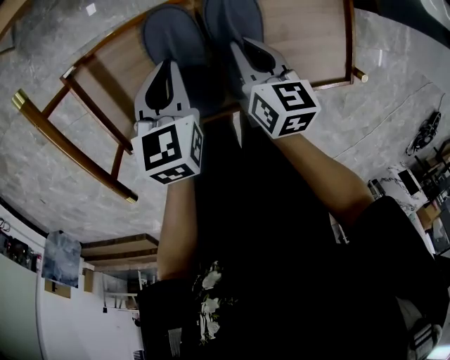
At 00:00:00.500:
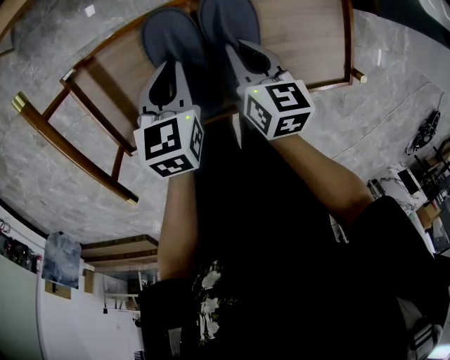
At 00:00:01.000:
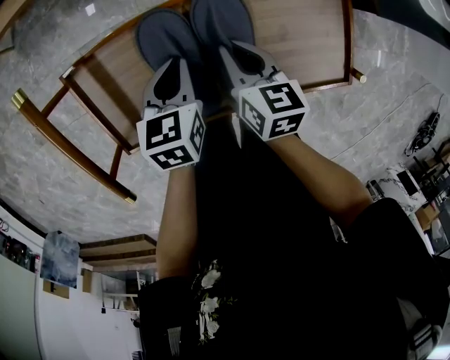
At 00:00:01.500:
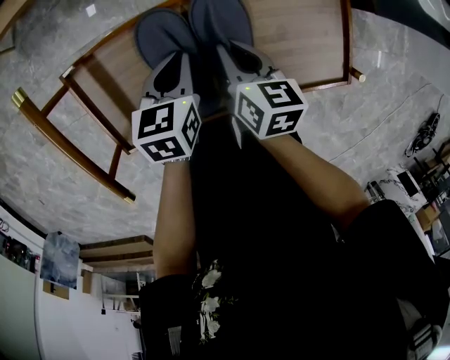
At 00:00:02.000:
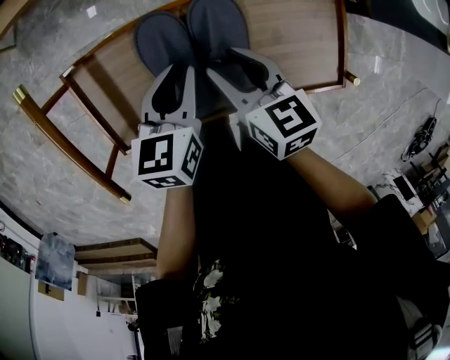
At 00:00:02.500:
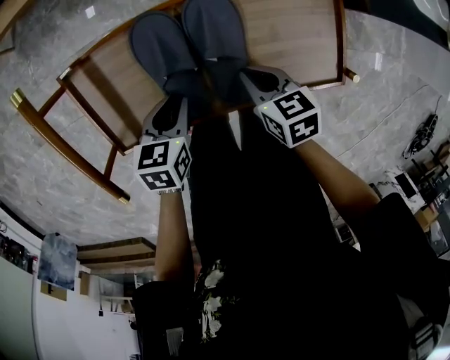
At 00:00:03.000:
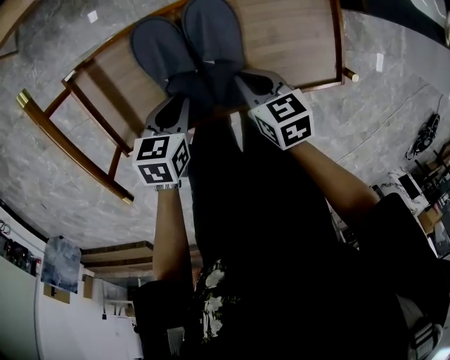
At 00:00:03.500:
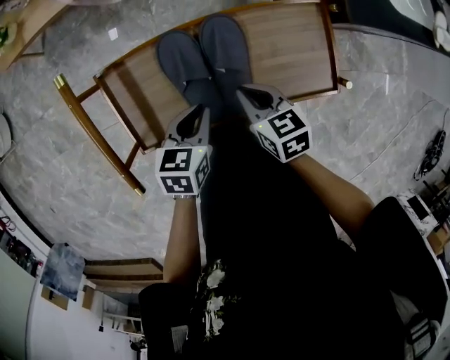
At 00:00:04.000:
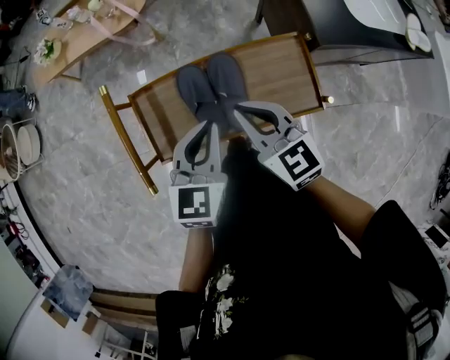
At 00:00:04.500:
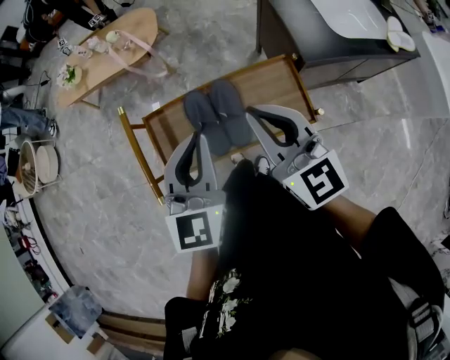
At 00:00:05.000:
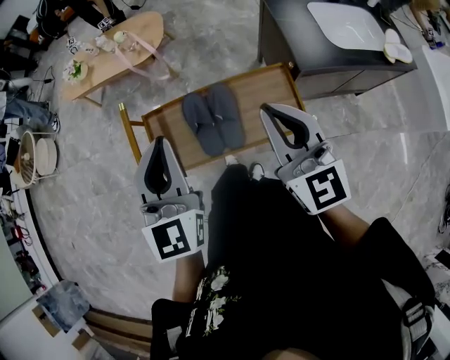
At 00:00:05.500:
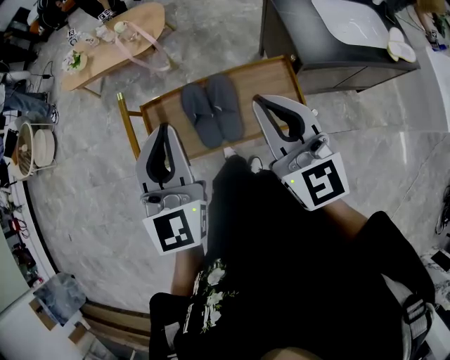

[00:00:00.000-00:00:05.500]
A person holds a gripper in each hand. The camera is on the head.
00:00:00.000 to 00:00:02.000: The right gripper moves roughly 5 cm, and opens up.
00:00:02.000 to 00:00:03.500: The grippers both shift backward by some 5 cm. The right gripper closes.
00:00:03.500 to 00:00:05.500: Both grippers travel together upward, roughly 35 cm. The right gripper angles its fingers upward, by roughly 40 degrees; the left gripper tips its fingers upward by approximately 40 degrees.

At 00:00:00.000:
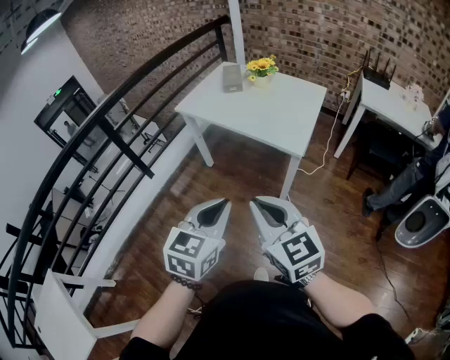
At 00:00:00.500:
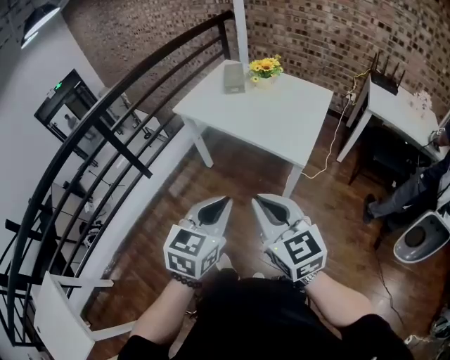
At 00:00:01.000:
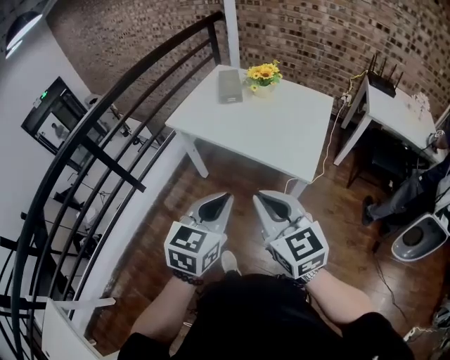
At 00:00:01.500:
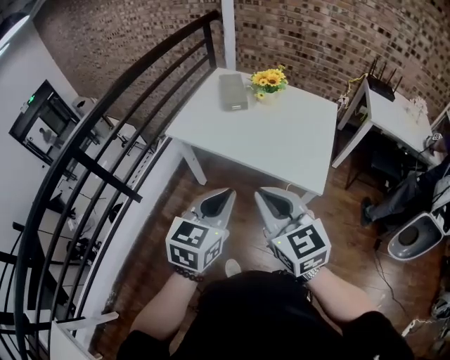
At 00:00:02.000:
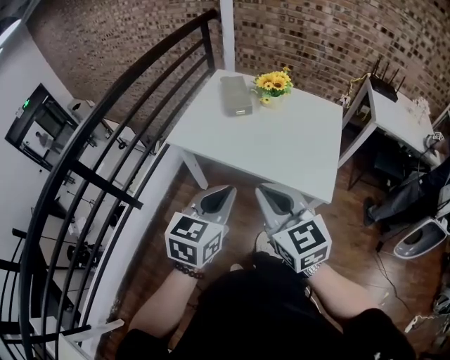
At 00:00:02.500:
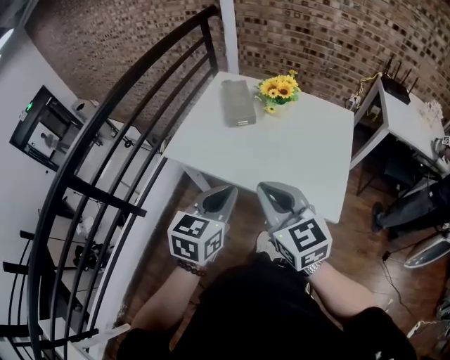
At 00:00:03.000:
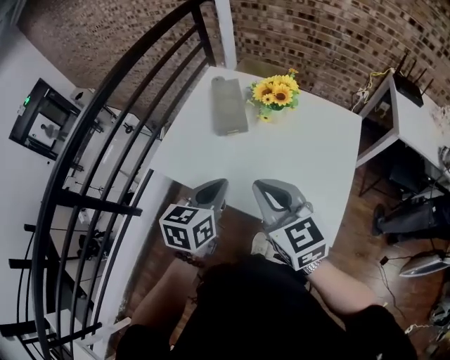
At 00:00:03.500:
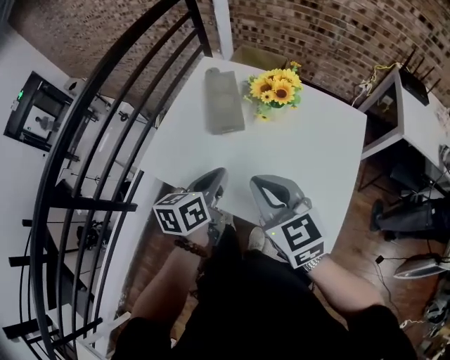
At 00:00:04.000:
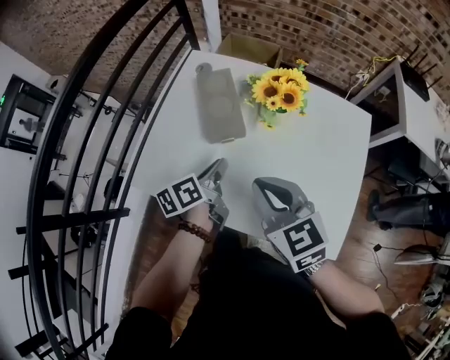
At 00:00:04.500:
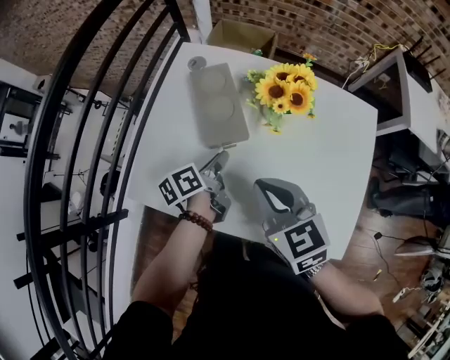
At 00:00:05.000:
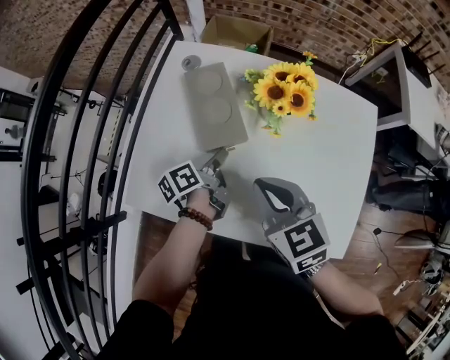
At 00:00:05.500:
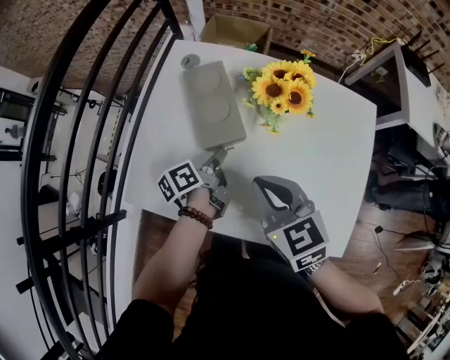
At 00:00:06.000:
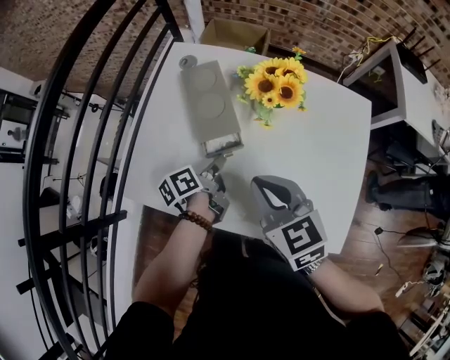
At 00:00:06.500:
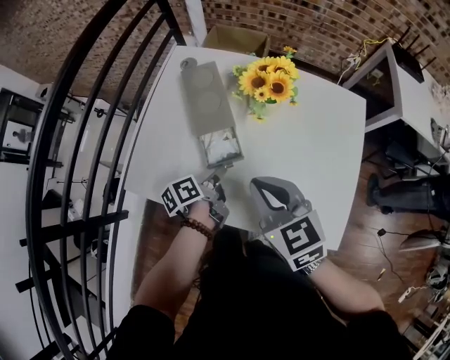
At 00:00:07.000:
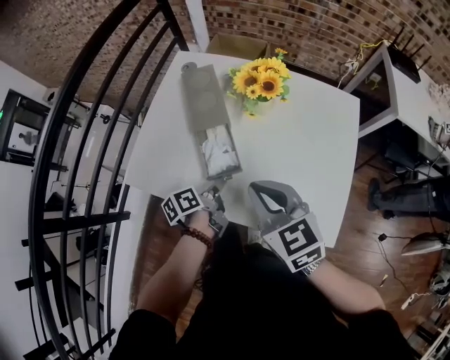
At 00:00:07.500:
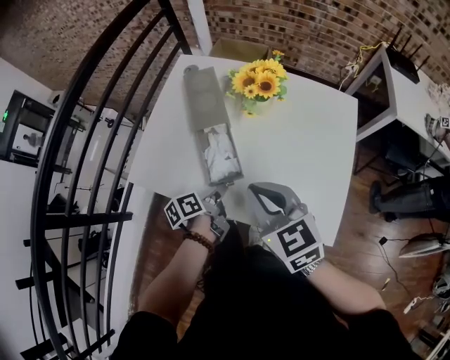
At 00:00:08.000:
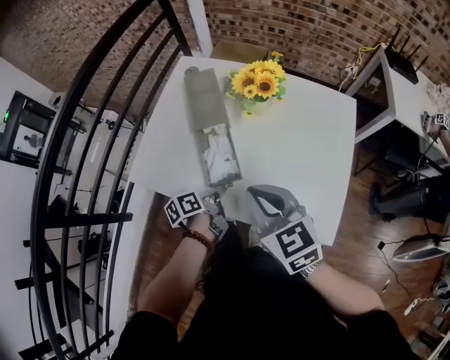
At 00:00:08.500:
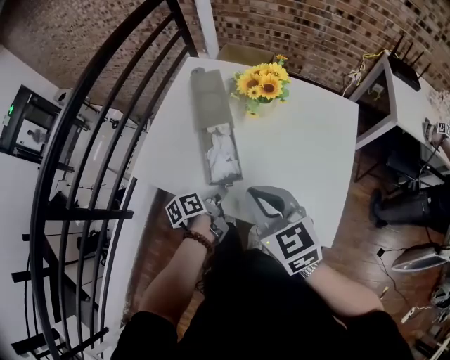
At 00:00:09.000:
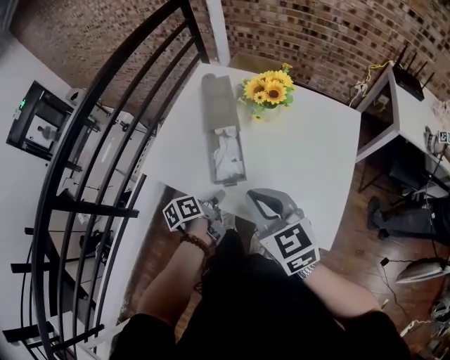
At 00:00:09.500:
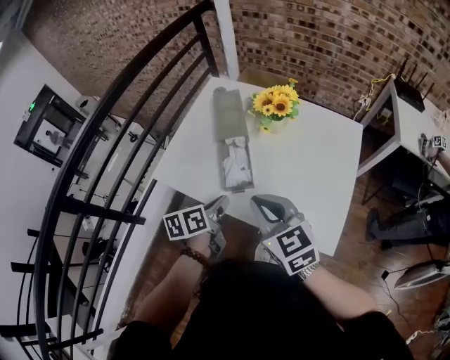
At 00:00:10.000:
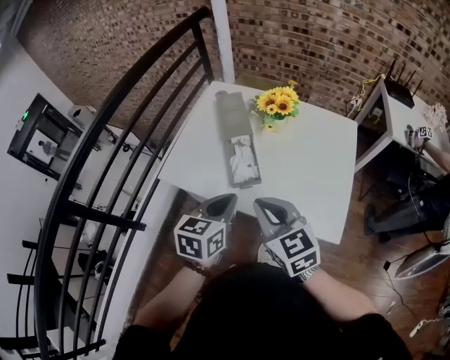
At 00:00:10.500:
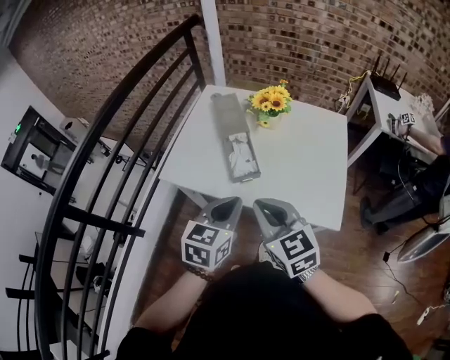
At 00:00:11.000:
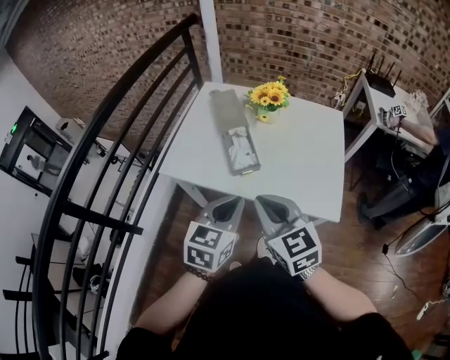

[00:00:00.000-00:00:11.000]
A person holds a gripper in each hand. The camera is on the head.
00:00:00.000 to 00:00:02.000: The two grippers go approximately 30 cm forward.
00:00:02.000 to 00:00:03.500: Both grippers travel together forward, about 25 cm. The left gripper turns by some 30 degrees.
00:00:03.500 to 00:00:05.500: The left gripper moves forward and downward, roughly 20 cm, and rotates some 40 degrees, while the right gripper travels forward and downward by about 15 cm.
00:00:05.500 to 00:00:07.500: The right gripper is displaced backward by about 10 cm; the left gripper is displaced backward by about 15 cm.
00:00:07.500 to 00:00:09.000: The grippers stay close to where they were, moving slightly.
00:00:09.000 to 00:00:11.000: The left gripper goes some 25 cm upward and backward, and rolls clockwise, seen from behind, by some 70 degrees. The right gripper shifts about 10 cm backward and to the left.

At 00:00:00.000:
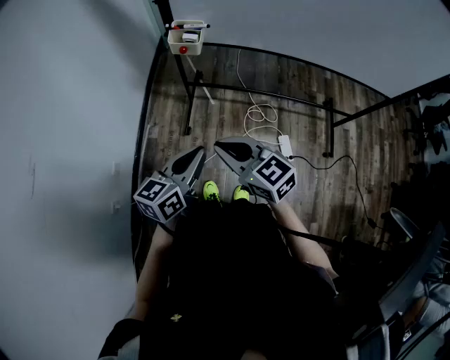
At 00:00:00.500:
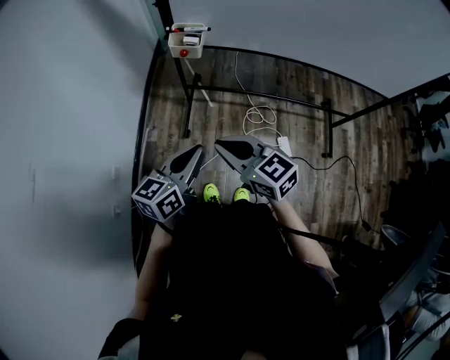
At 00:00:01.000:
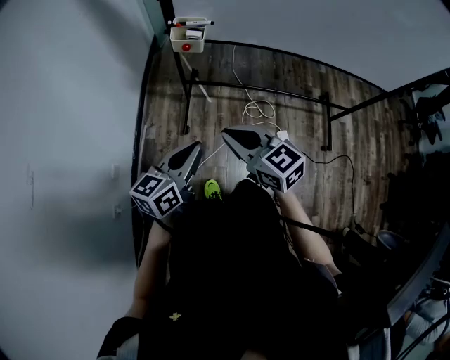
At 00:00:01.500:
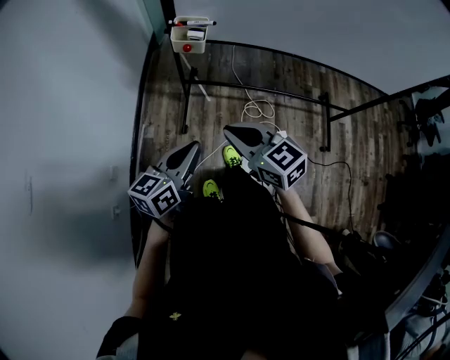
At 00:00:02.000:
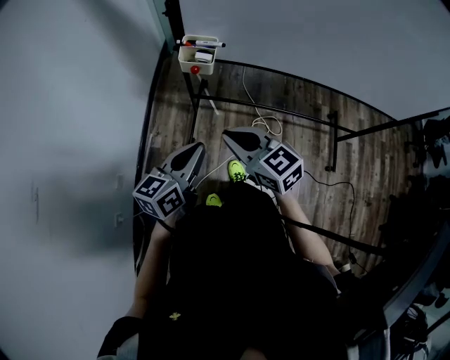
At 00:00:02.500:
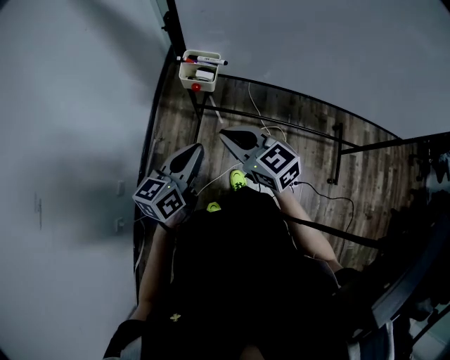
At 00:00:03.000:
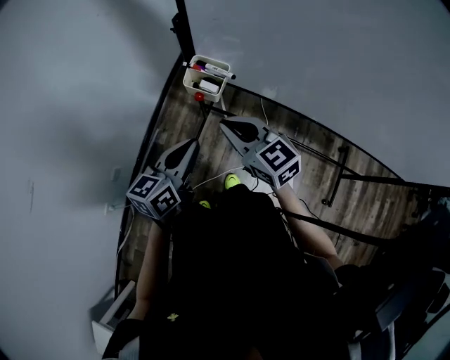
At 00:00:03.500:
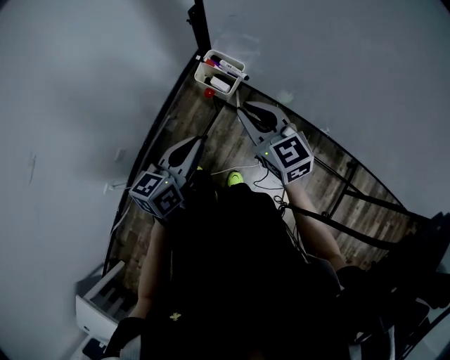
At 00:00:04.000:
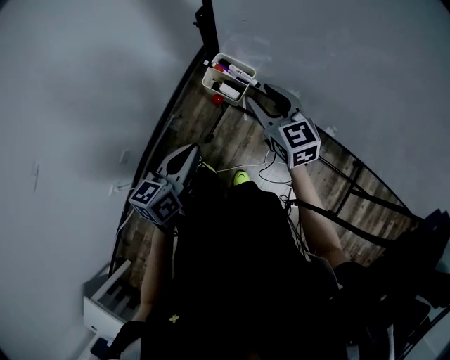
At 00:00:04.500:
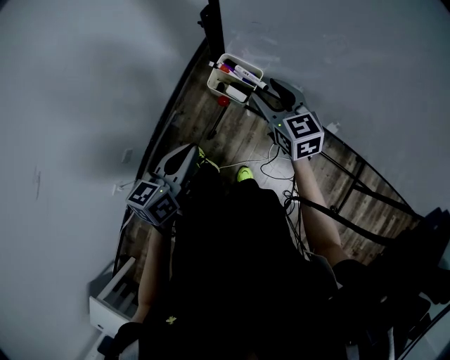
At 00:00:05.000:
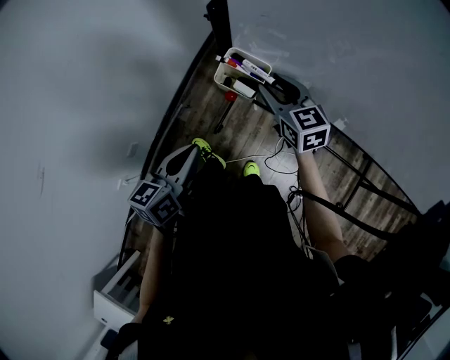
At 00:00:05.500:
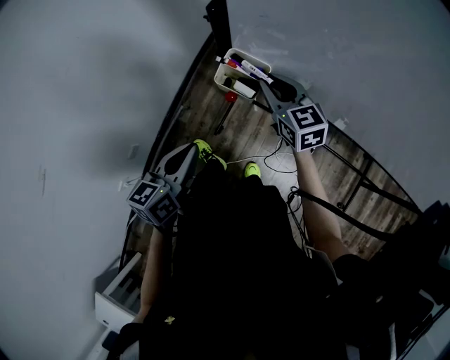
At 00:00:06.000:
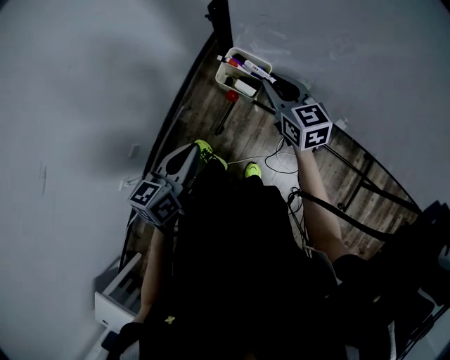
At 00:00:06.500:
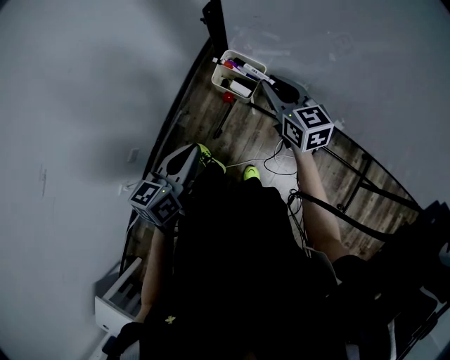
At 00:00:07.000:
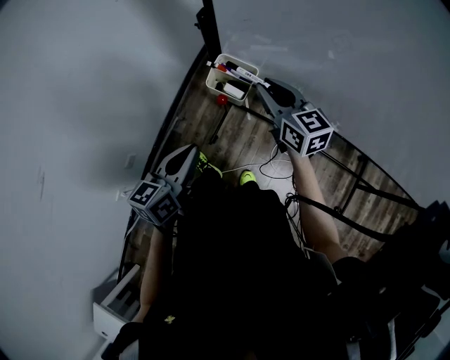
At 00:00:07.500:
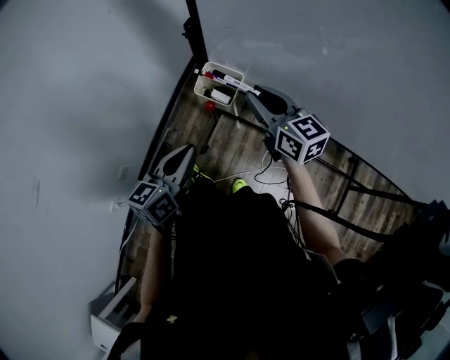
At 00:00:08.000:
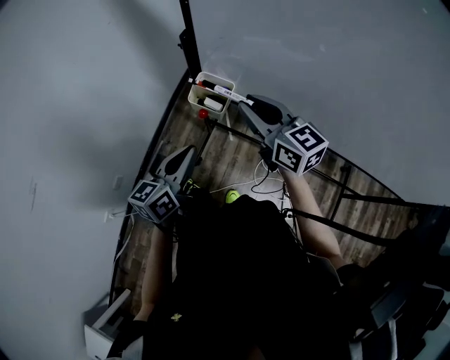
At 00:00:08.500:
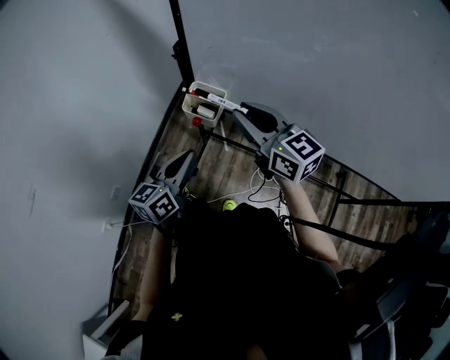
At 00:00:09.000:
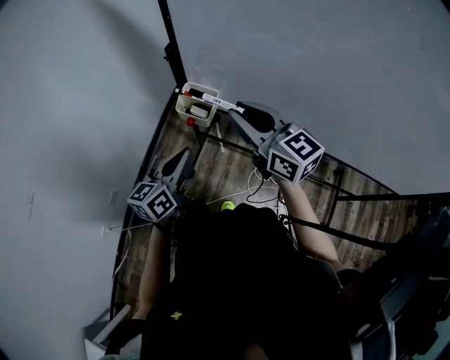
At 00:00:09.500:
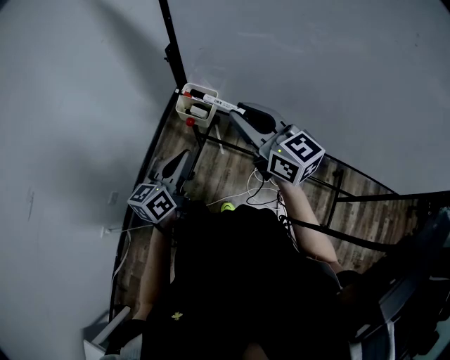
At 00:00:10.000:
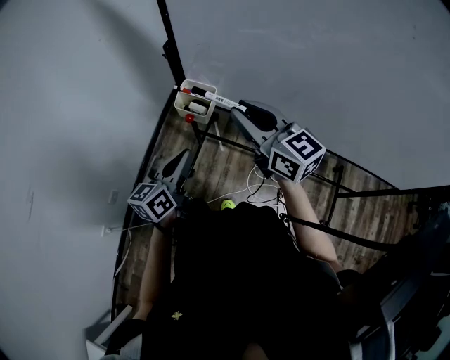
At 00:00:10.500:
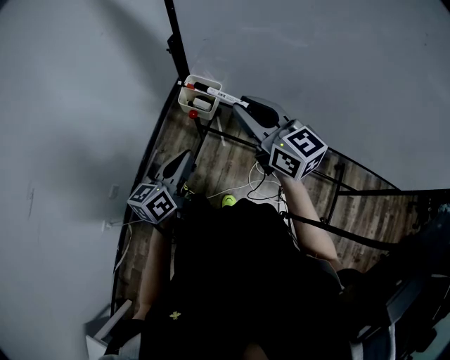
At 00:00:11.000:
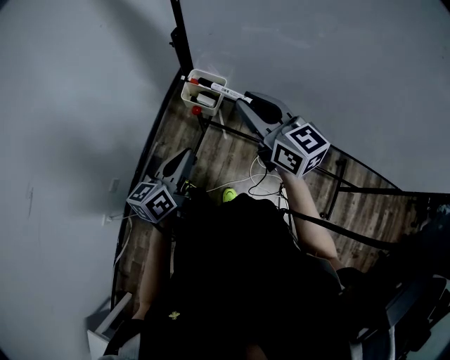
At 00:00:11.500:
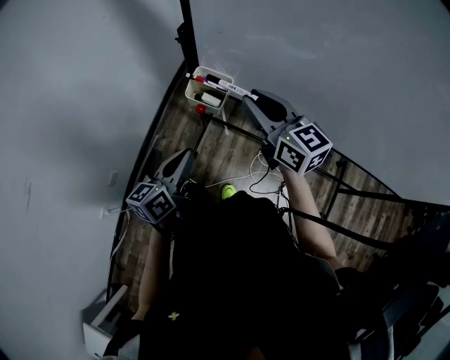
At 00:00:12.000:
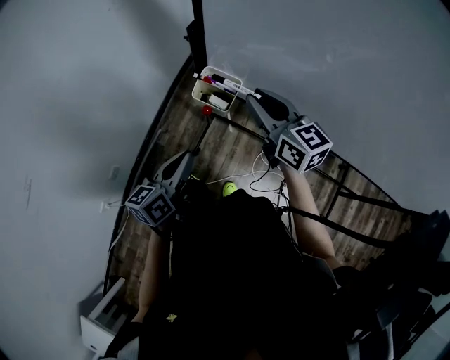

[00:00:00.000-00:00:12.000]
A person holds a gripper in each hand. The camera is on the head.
00:00:00.000 to 00:00:02.000: Both grippers travel together forward, roughly 10 cm.
00:00:02.000 to 00:00:04.000: The right gripper is displaced forward by roughly 25 cm, and opens up; the left gripper shifts some 15 cm forward, and changes its angle by roughly 30 degrees.
00:00:04.000 to 00:00:06.000: The right gripper shifts by approximately 5 cm.
00:00:06.000 to 00:00:08.000: The right gripper heads upward and backward, covering some 15 cm. The left gripper moves to the right, some 5 cm.
00:00:08.000 to 00:00:10.000: The right gripper moves roughly 5 cm.
00:00:10.000 to 00:00:12.000: The right gripper heads forward and downward, covering approximately 10 cm.
